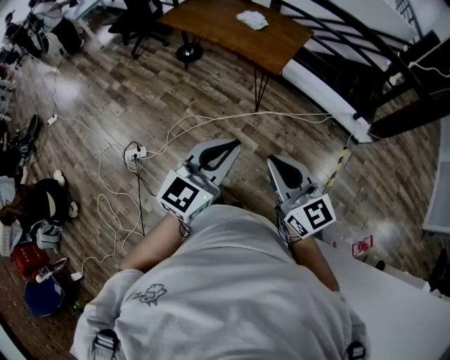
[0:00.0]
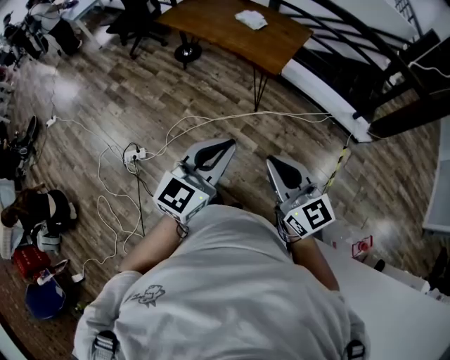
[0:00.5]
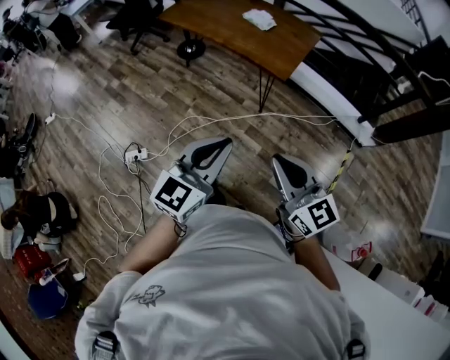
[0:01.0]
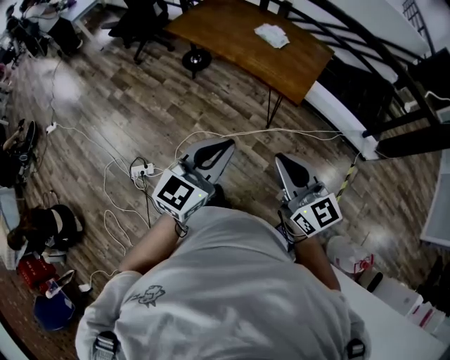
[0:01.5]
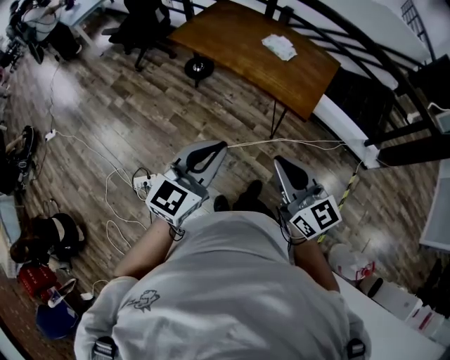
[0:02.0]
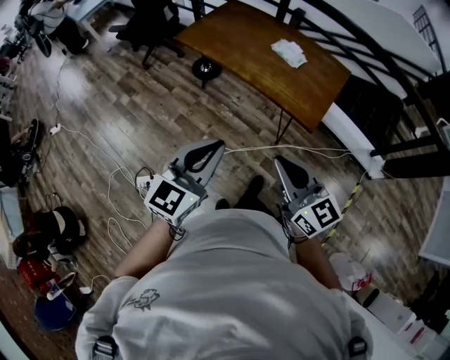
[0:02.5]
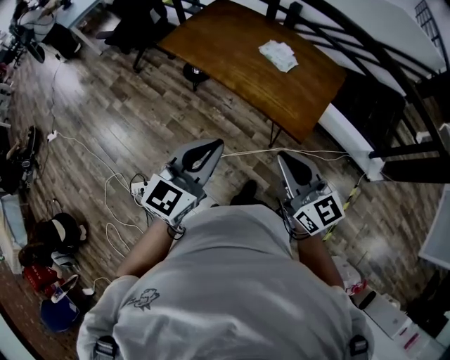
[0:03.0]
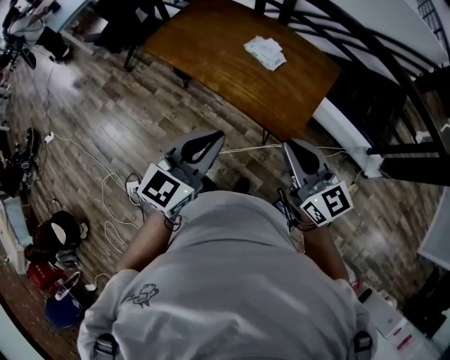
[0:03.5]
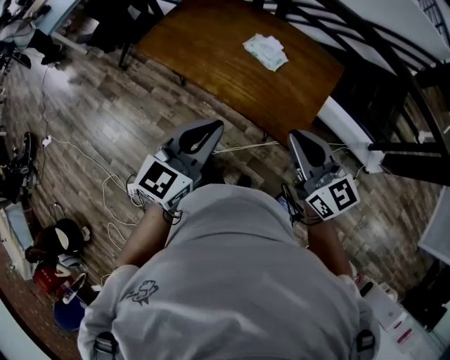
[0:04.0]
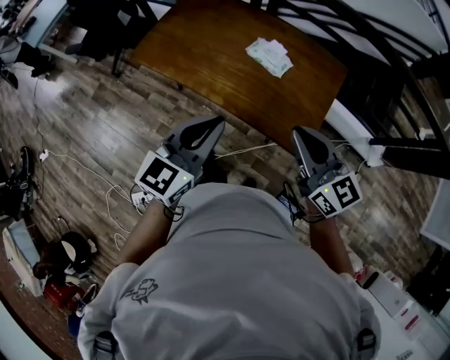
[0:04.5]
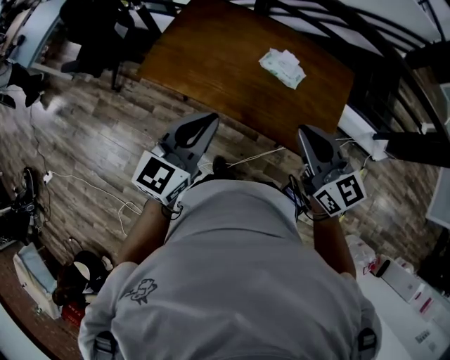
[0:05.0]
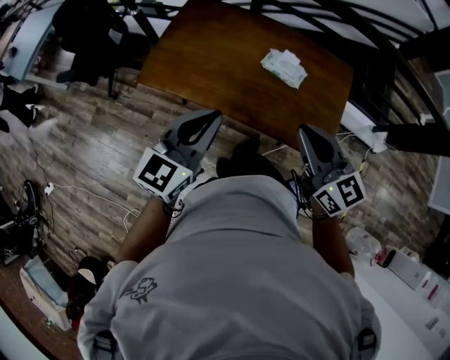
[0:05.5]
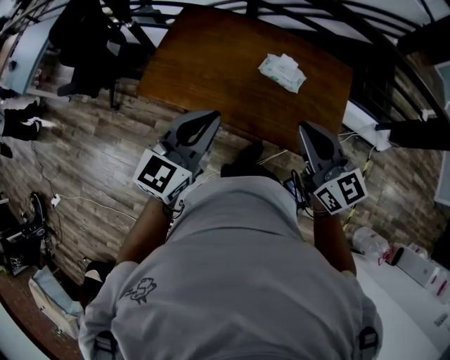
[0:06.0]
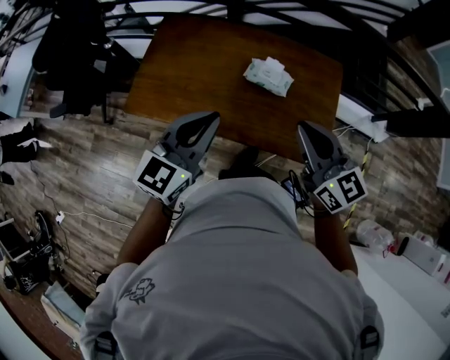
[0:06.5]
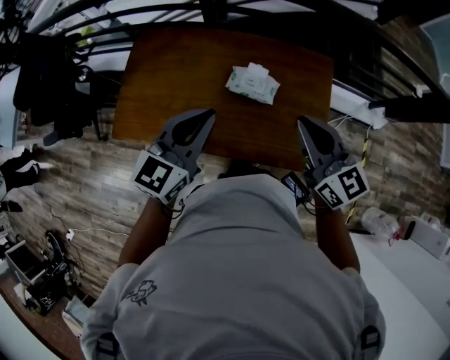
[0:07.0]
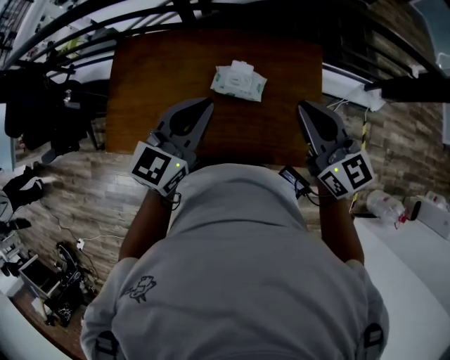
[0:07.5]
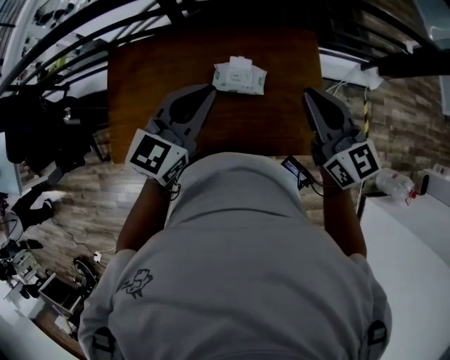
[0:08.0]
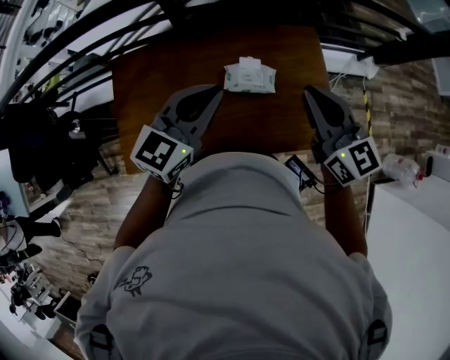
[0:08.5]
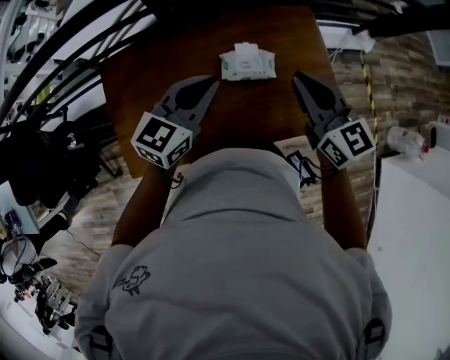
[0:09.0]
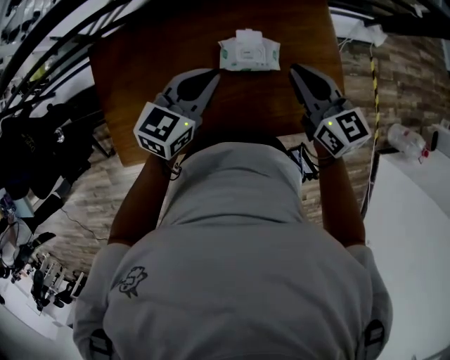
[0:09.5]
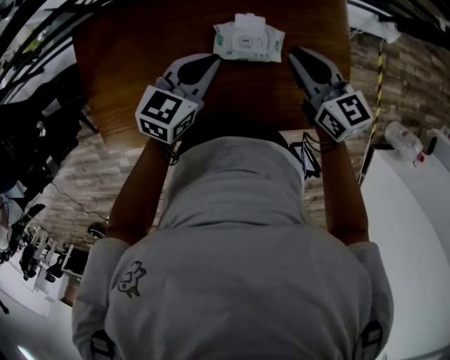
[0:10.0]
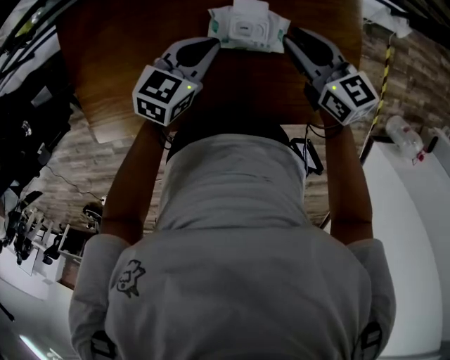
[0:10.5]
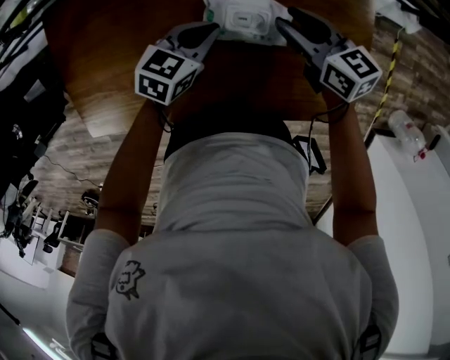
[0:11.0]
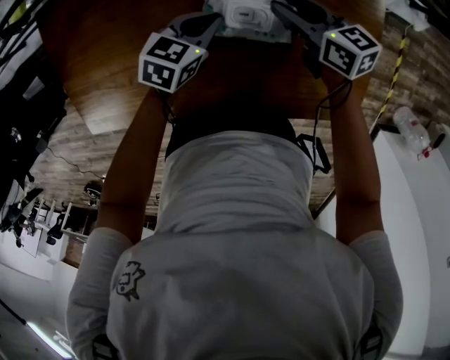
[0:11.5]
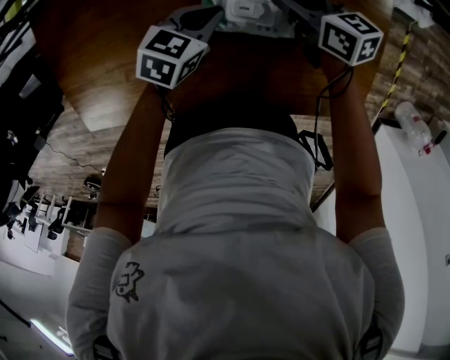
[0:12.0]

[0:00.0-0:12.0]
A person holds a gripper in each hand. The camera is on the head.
0:00.0 to 0:02.0: The grippers both shift forward and to the left by about 30 cm.
0:02.0 to 0:04.0: Both grippers move forward and to the right, some 35 cm.
0:04.0 to 0:06.0: Both grippers move to the left and forward, roughly 25 cm.
0:06.0 to 0:08.0: Both grippers travel together forward and to the right, roughly 25 cm. The left gripper swivels roughly 20 degrees. The right gripper swivels about 20 degrees.
0:08.0 to 0:10.0: The left gripper heads downward, covering some 20 cm, and rotates approximately 20 degrees; the right gripper is displaced downward and forward by approximately 20 cm.
0:10.0 to 0:12.0: The left gripper heads downward, covering approximately 20 cm, while the right gripper heads downward and forward, covering roughly 20 cm, turns by some 30 degrees, and opens.

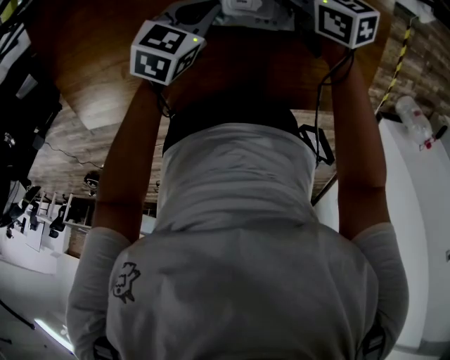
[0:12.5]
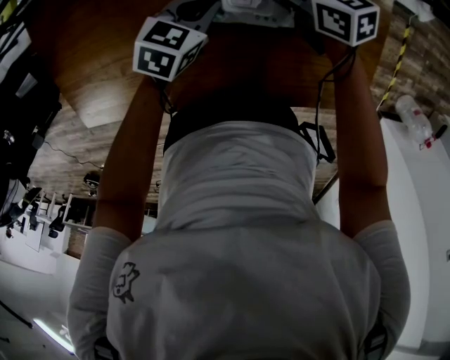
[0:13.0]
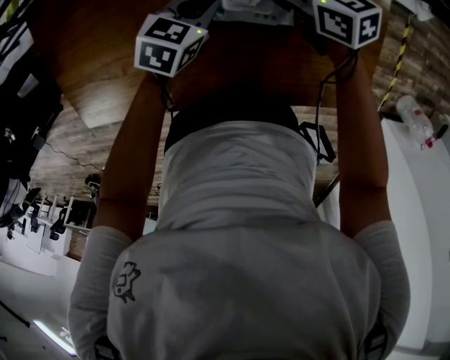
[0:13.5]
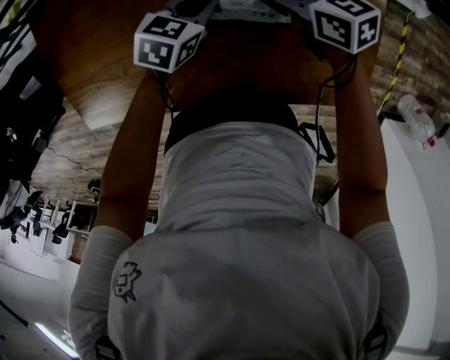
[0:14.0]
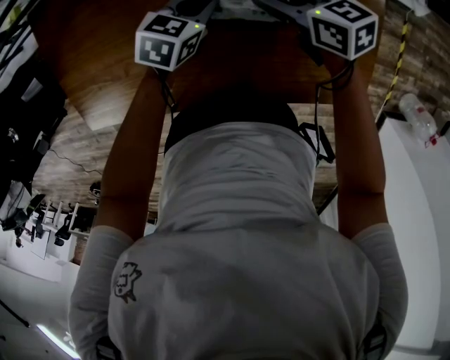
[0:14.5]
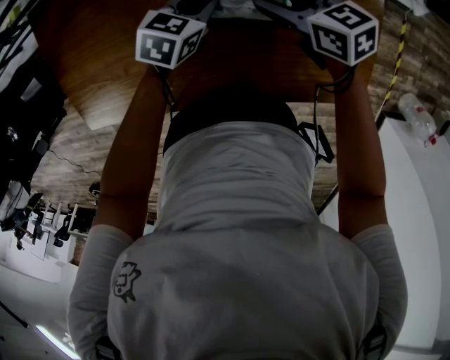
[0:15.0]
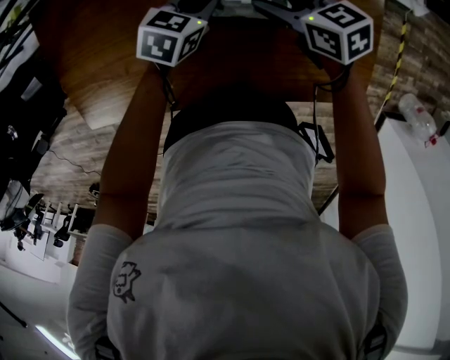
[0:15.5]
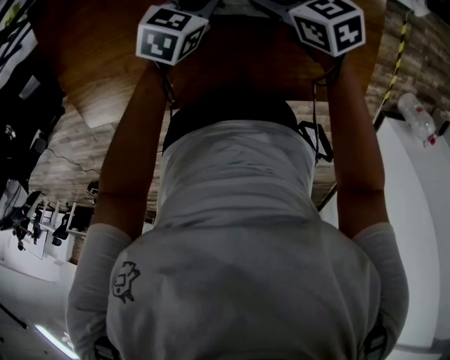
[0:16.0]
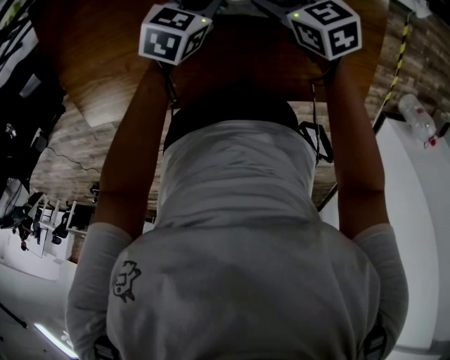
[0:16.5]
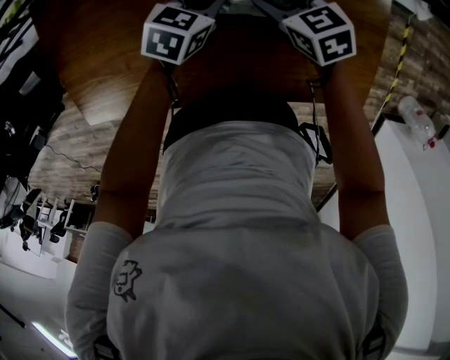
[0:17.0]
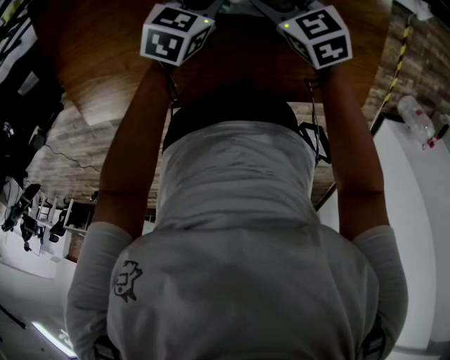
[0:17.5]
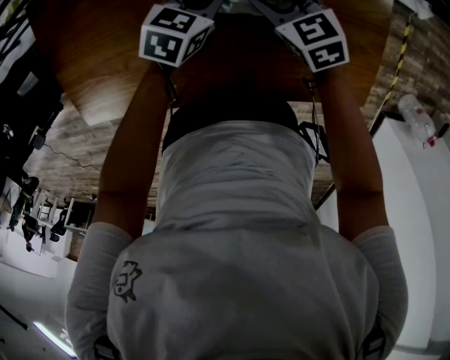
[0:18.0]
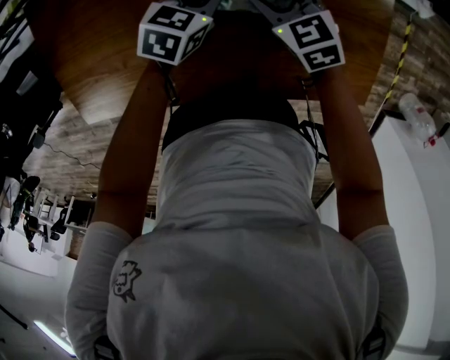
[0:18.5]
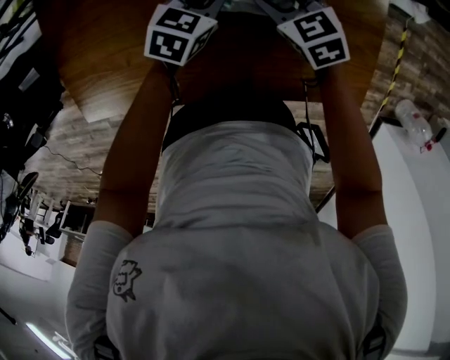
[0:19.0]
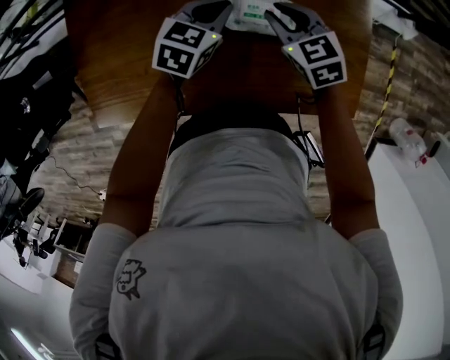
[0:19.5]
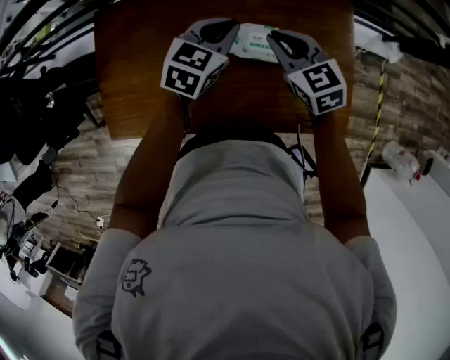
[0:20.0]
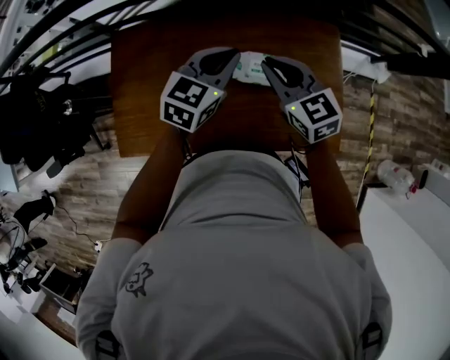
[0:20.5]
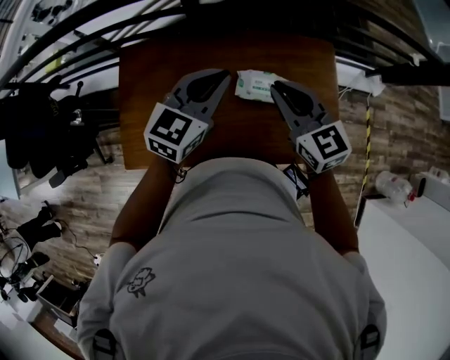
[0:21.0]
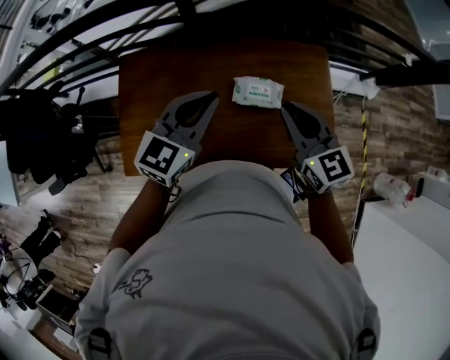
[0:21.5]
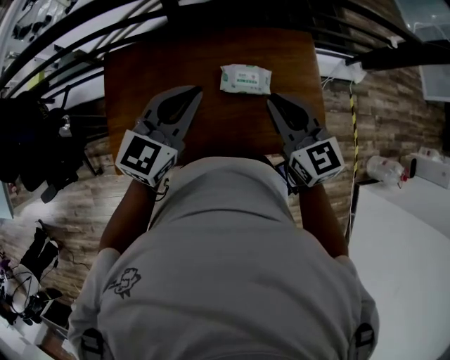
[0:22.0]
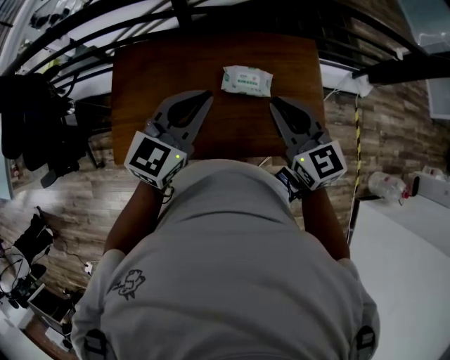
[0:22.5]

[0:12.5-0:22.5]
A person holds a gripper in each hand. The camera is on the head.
0:12.5 to 0:14.5: The right gripper changes place by some 5 cm.
0:14.5 to 0:16.5: The grippers make only small movements.
0:16.5 to 0:18.5: The grippers make only small movements.
0:18.5 to 0:20.5: The two grippers go some 30 cm upward. The left gripper changes its angle by some 30 degrees; the right gripper changes its angle by roughly 20 degrees, and closes up.
0:20.5 to 0:22.5: Both grippers move backward and upward, about 15 cm.

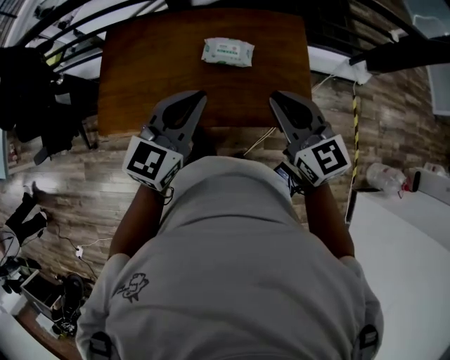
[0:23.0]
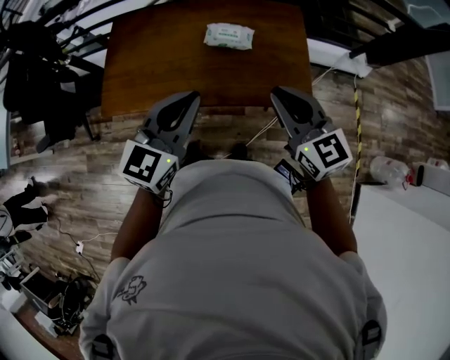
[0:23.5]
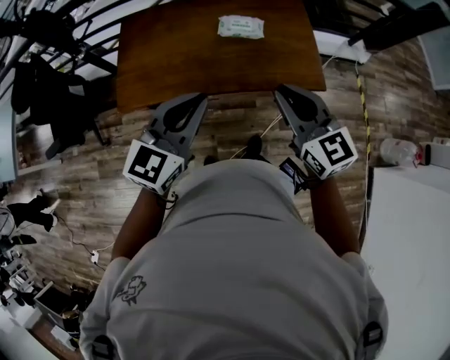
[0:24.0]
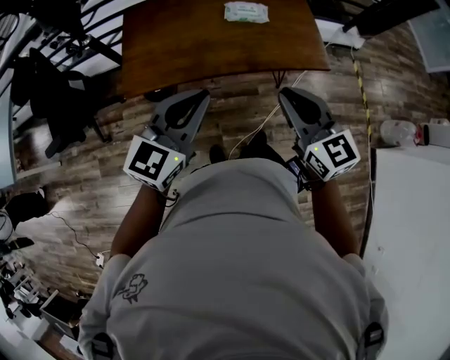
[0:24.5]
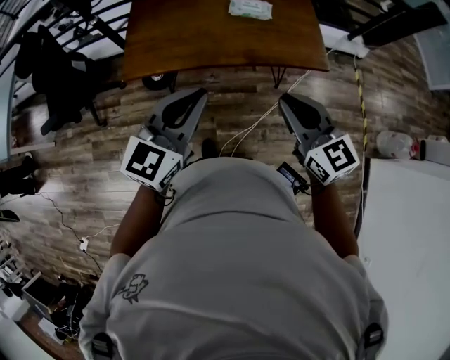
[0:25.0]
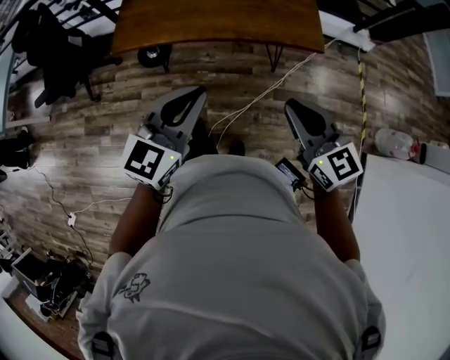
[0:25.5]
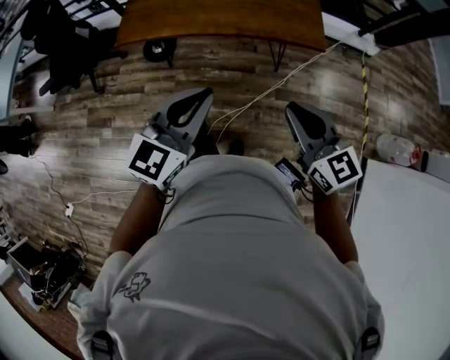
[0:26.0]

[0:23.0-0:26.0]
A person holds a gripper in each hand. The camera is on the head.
0:23.0 to 0:24.5: The two grippers go roughly 30 cm backward and to the left.
0:24.5 to 0:26.0: The grippers both shift backward and to the right by roughly 20 cm.

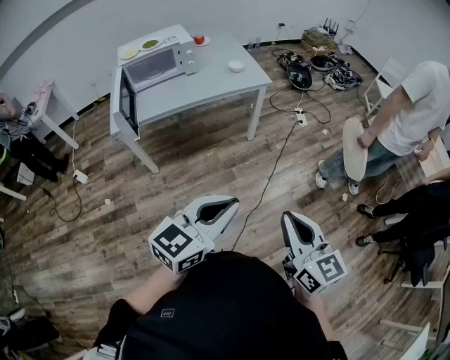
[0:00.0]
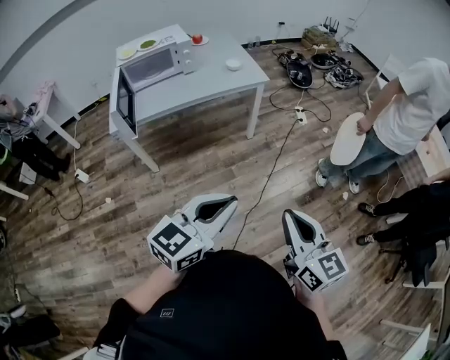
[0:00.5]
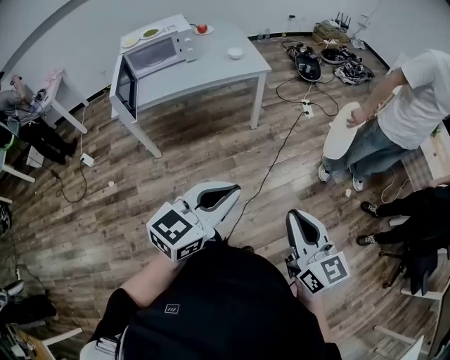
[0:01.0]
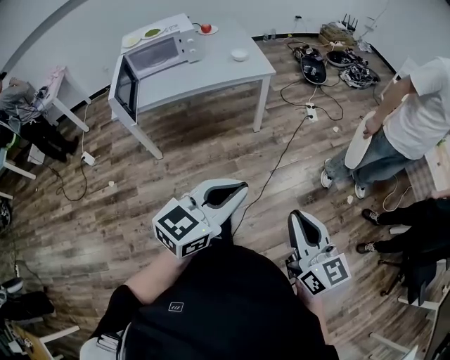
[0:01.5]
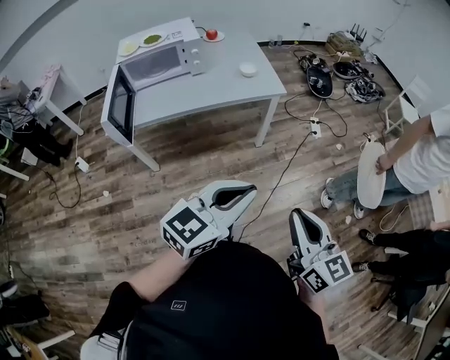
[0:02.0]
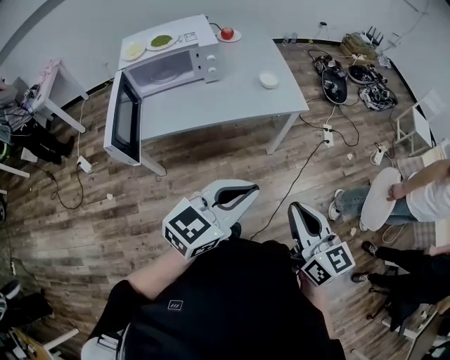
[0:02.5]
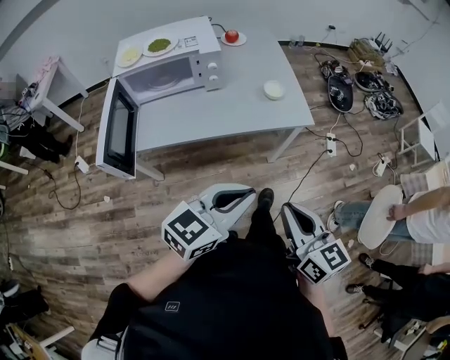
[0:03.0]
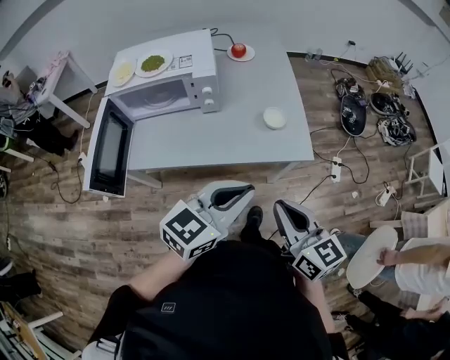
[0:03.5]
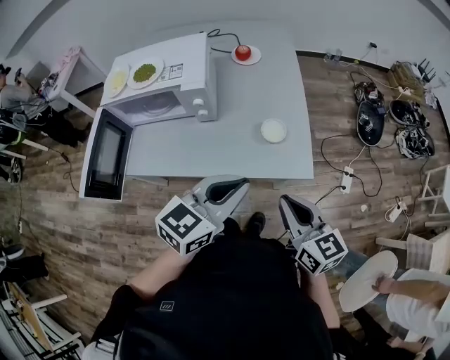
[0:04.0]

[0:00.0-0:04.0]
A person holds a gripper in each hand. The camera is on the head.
0:00.0 to 0:02.0: Both grippers move forward, approximately 20 cm.
0:02.0 to 0:04.0: The two grippers travel together, forward, approximately 50 cm. The right gripper changes its angle by about 30 degrees. Meanwhile the left gripper turns by roughly 20 degrees.
